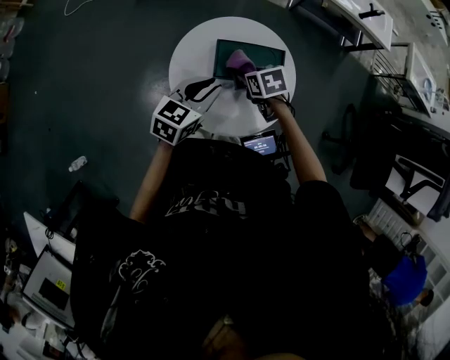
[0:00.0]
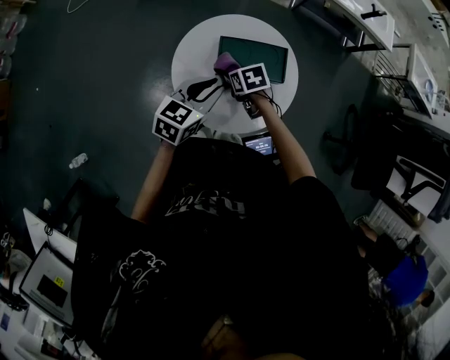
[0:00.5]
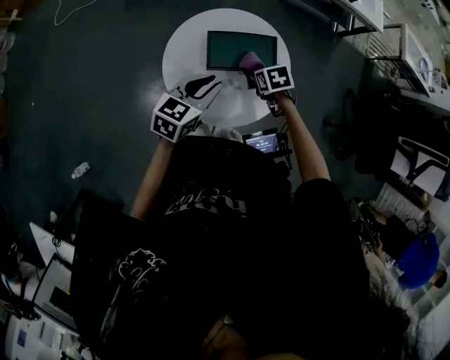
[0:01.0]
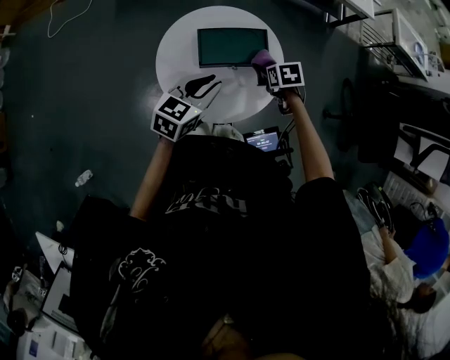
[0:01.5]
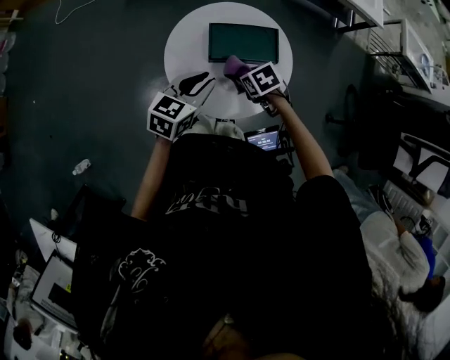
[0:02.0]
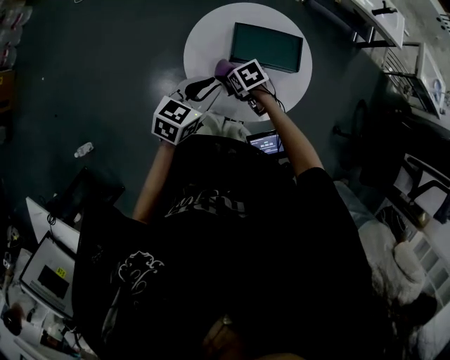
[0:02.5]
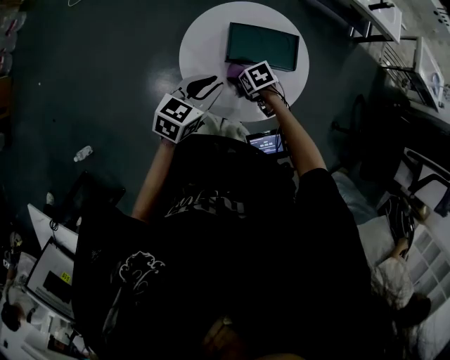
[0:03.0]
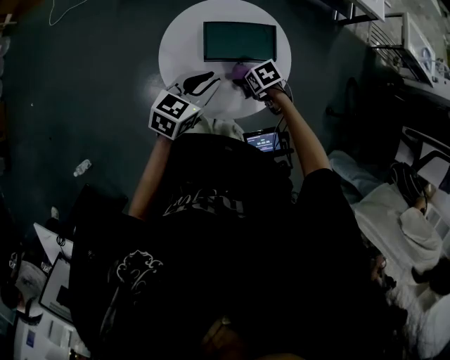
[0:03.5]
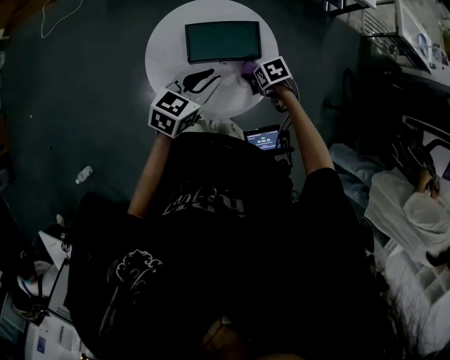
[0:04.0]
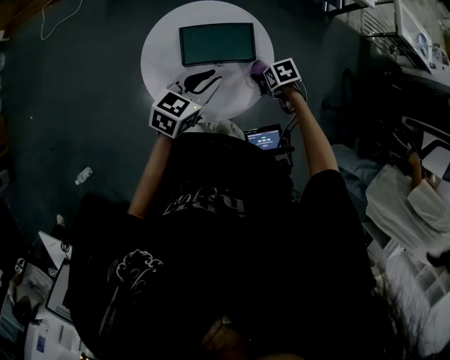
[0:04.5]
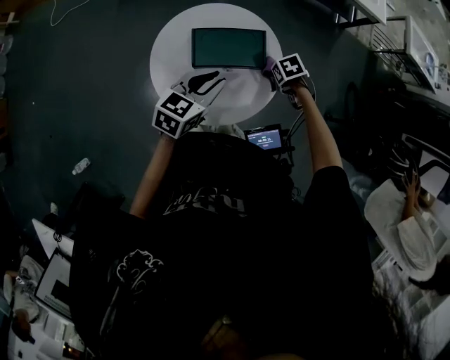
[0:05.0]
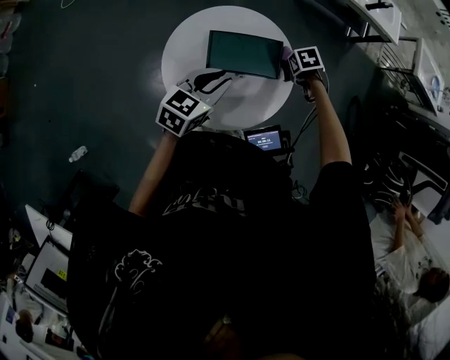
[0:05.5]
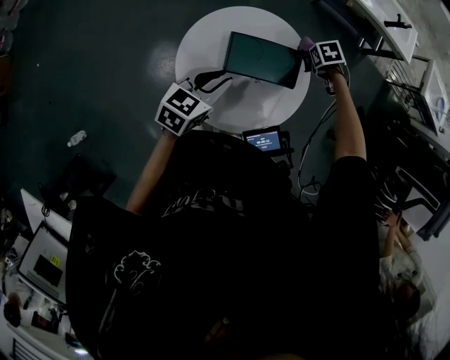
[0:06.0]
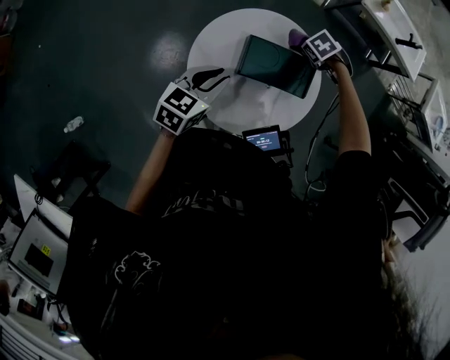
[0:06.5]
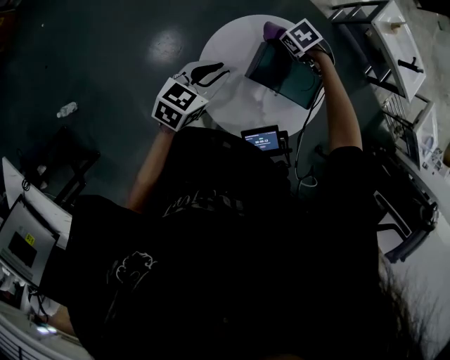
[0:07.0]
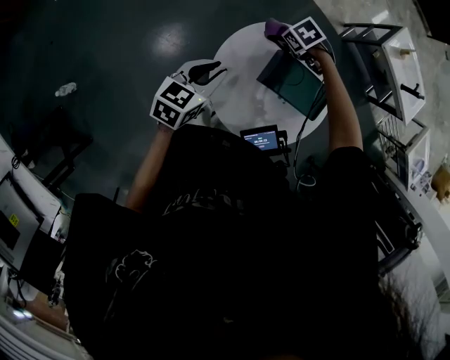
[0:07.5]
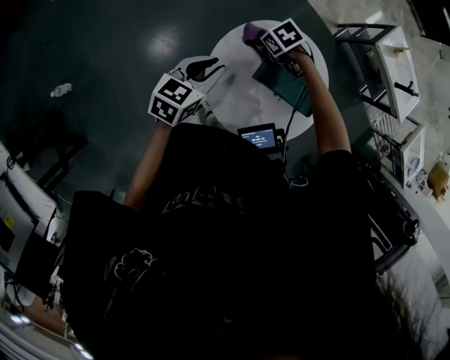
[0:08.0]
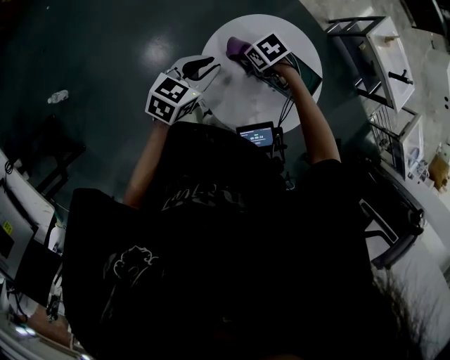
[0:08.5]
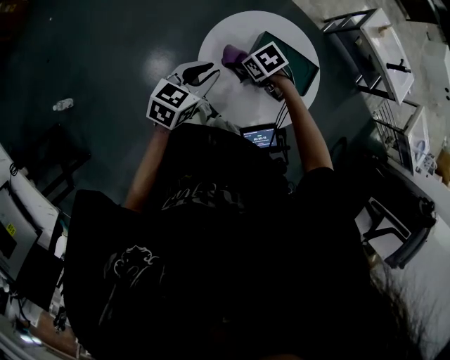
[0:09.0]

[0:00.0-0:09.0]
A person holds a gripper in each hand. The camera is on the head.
0:00.0 to 0:02.0: The right gripper goes left and right, roughly 20 cm each way, reversing 2 times.
0:02.0 to 0:04.5: The left gripper ends up roughly 10 cm from where it was, while the right gripper moves approximately 15 cm, and rotates some 20 degrees.
0:04.5 to 0:07.0: The left gripper ends up about 20 cm from where it was, and swivels about 20 degrees, while the right gripper changes place by roughly 35 cm, and rolls counterclockwise, seen from behind, by about 50 degrees.
0:07.0 to 0:09.0: The right gripper ends up about 20 cm from where it was; the left gripper ends up about 10 cm from where it was.

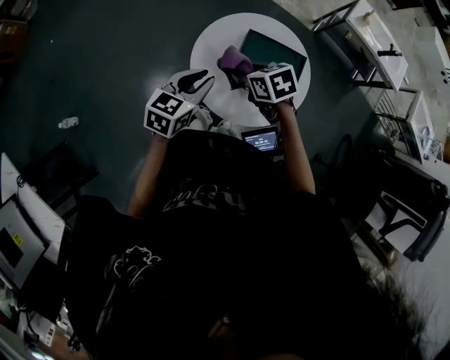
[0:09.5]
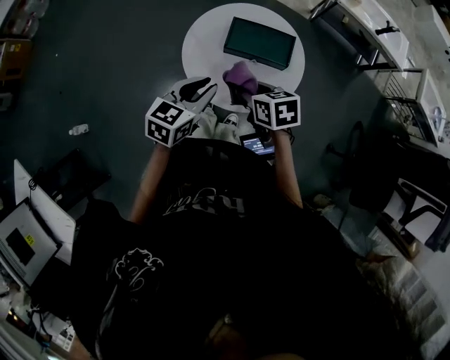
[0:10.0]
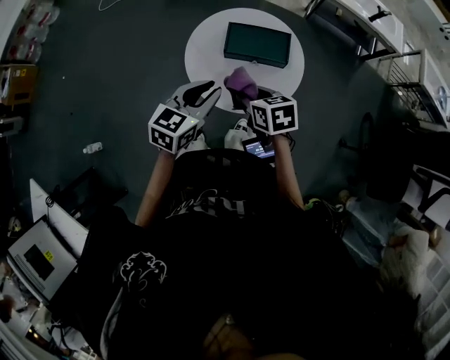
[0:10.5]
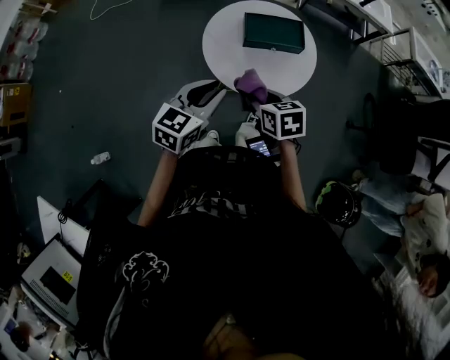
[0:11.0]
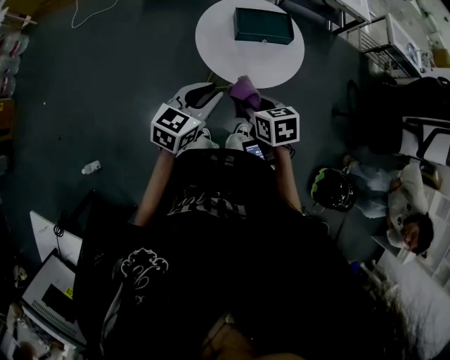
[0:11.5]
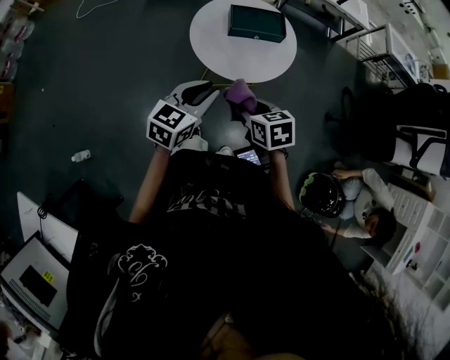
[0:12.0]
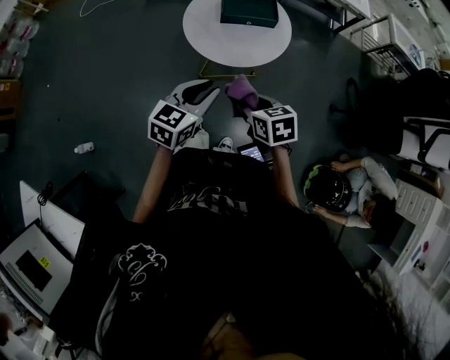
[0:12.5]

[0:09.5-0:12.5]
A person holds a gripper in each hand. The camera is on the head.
0:09.5 to 0:11.0: The left gripper moves some 15 cm. Meanwhile the right gripper changes place by roughly 15 cm, and turns by about 30 degrees.
0:11.0 to 0:12.5: The grippers both shift backward and to the right by approximately 15 cm.

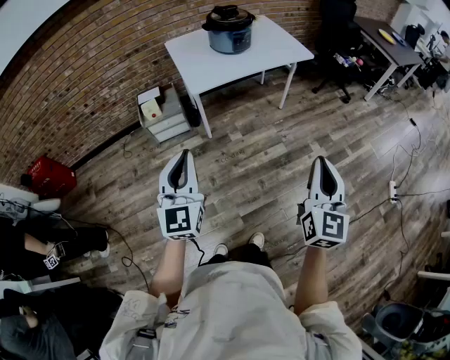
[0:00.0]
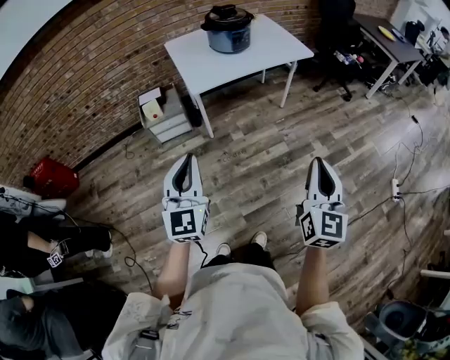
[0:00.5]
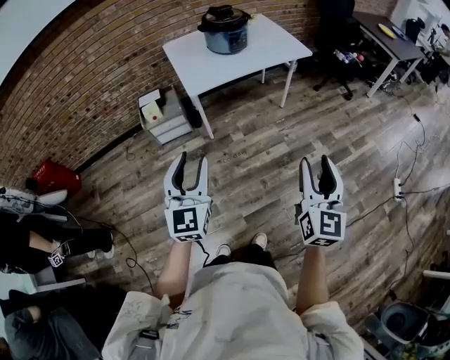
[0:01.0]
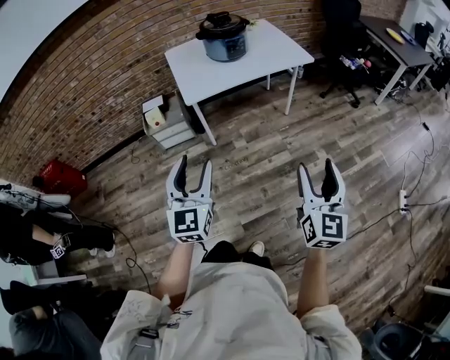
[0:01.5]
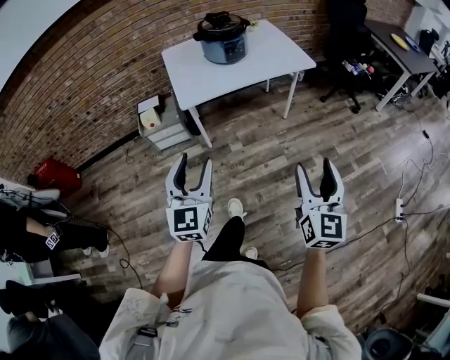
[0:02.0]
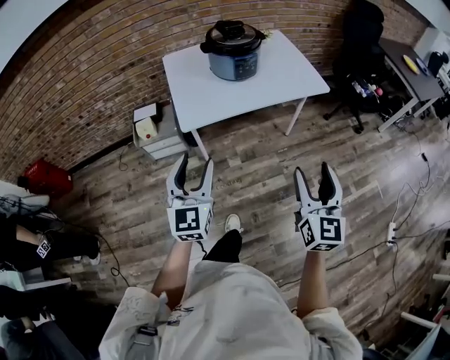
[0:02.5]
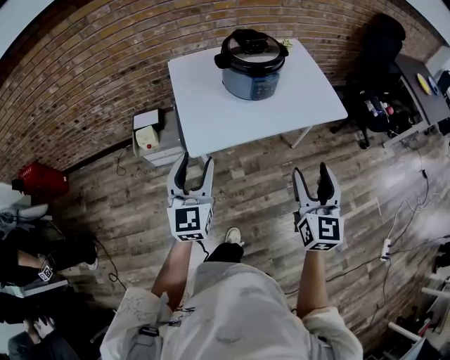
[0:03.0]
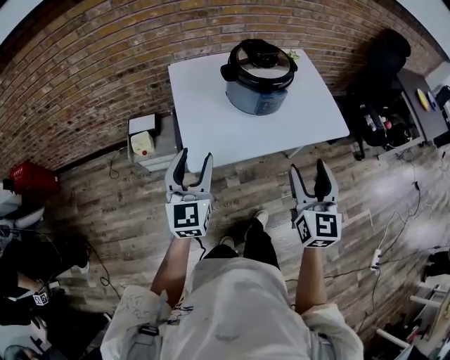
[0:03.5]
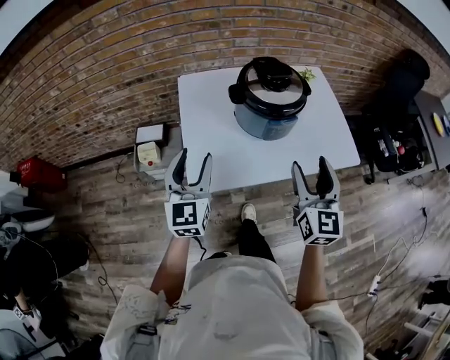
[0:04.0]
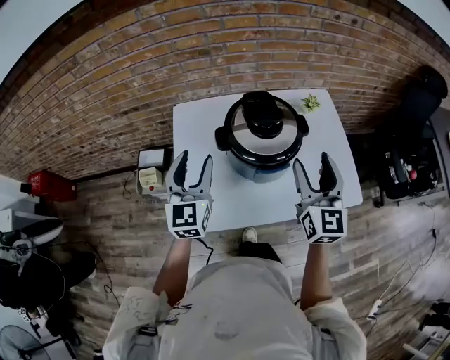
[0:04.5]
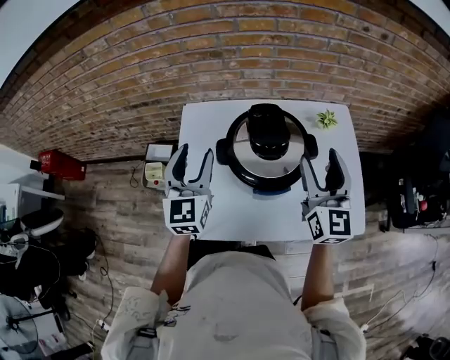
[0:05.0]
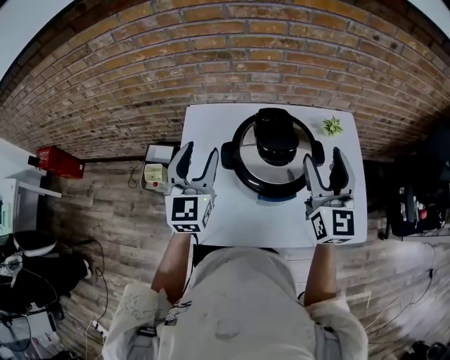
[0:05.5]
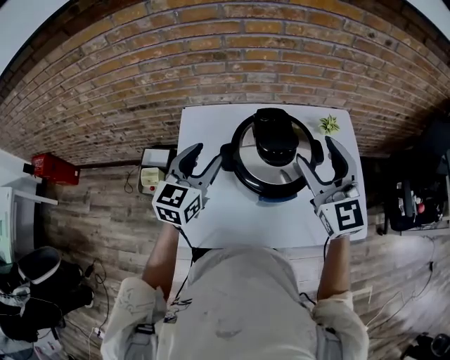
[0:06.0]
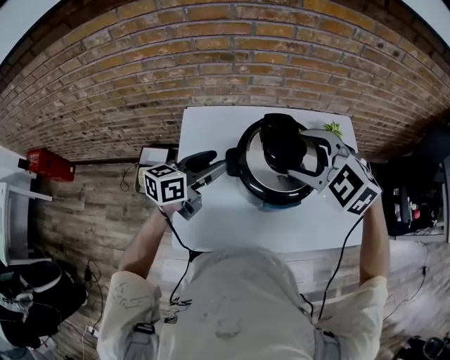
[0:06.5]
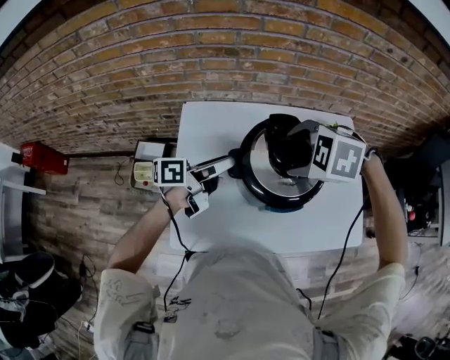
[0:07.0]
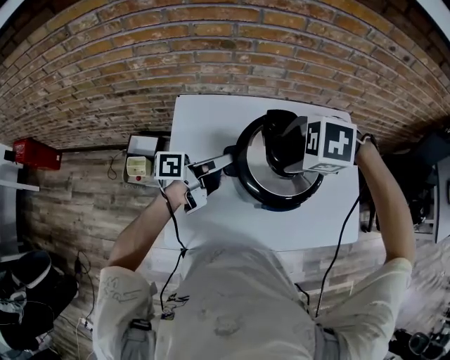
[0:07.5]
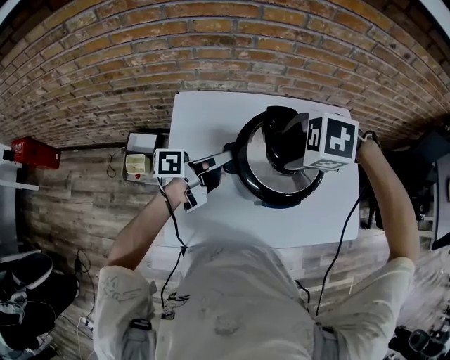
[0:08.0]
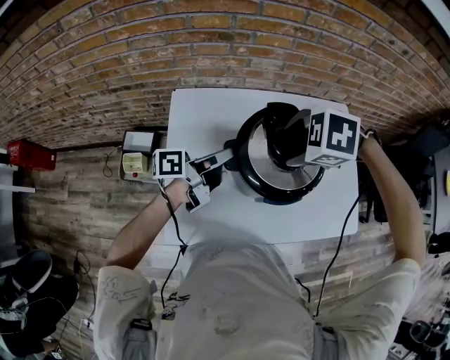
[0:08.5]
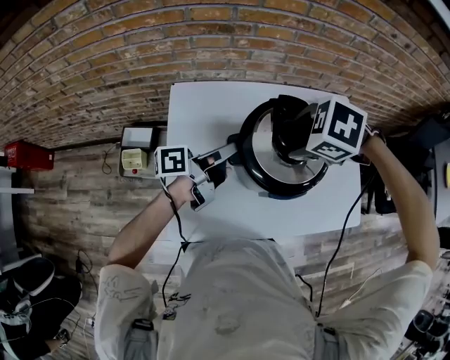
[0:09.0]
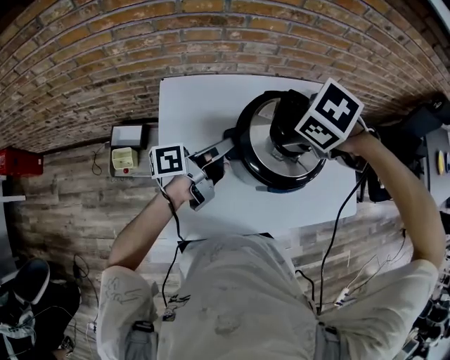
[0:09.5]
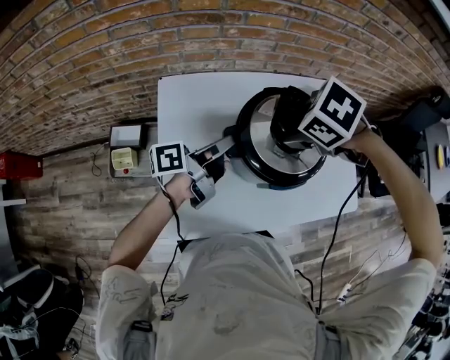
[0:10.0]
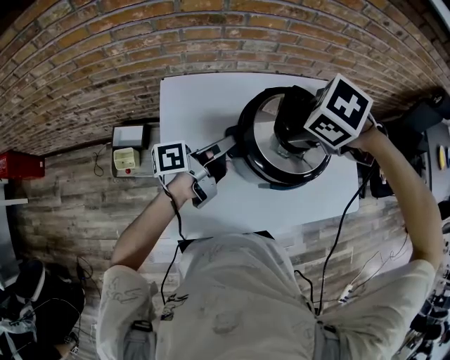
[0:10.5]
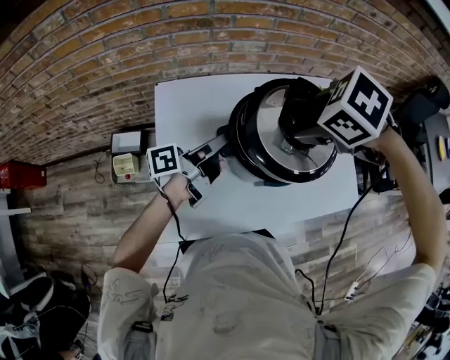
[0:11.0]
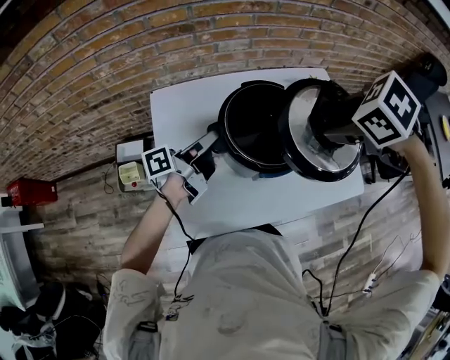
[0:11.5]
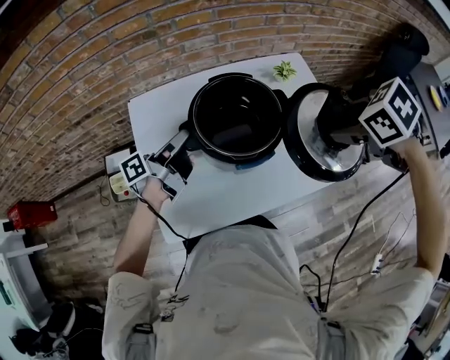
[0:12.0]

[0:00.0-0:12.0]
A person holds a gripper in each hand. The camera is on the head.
0:00.0 to 0:02.0: The left gripper heads to the right and forward, covering roughly 15 cm, and opens up; the right gripper heads forward and to the right, covering about 15 cm, and opens its fingers.
0:02.0 to 0:04.0: The two grippers travel together, forward, approximately 50 cm.
0:04.0 to 0:06.0: The left gripper is displaced forward and to the right by approximately 25 cm; the right gripper is displaced forward by roughly 25 cm, and swivels approximately 30 degrees.
0:06.0 to 0:08.0: Both grippers travel together downward, approximately 10 cm. The left gripper rotates around the line of its fingers by about 70 degrees, counterclockwise from behind, and closes its fingers. The right gripper angles its fingers downward, by some 70 degrees.
0:08.0 to 0:10.0: The right gripper turns by roughly 30 degrees.
0:10.0 to 0:12.0: The right gripper changes place by roughly 25 cm, and changes its angle by roughly 30 degrees.

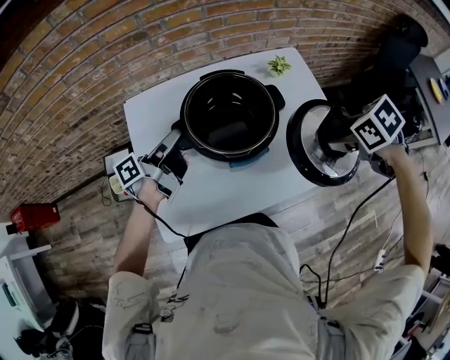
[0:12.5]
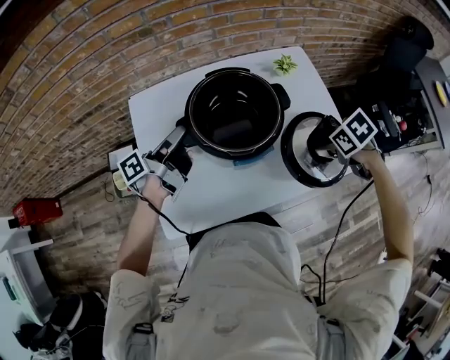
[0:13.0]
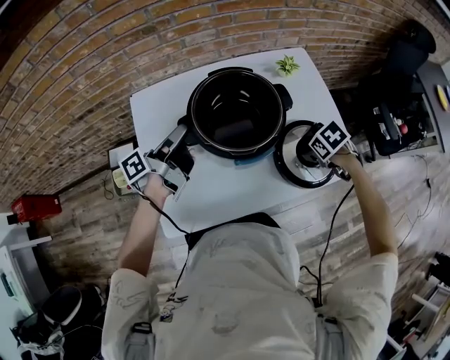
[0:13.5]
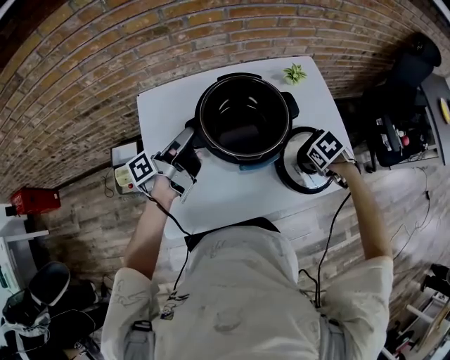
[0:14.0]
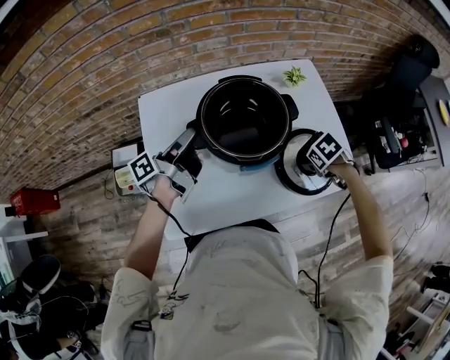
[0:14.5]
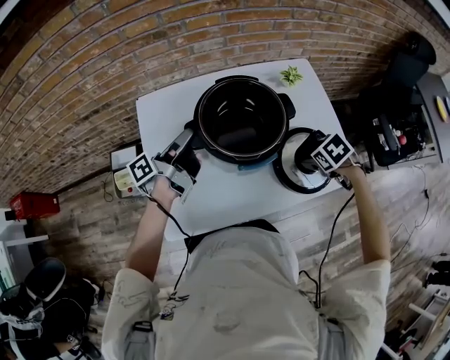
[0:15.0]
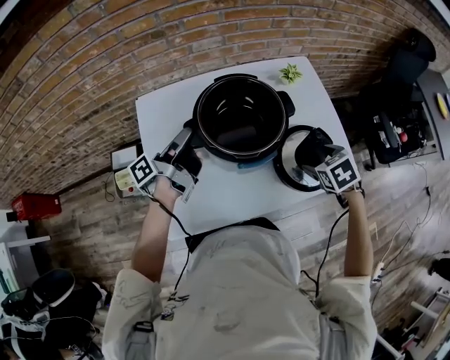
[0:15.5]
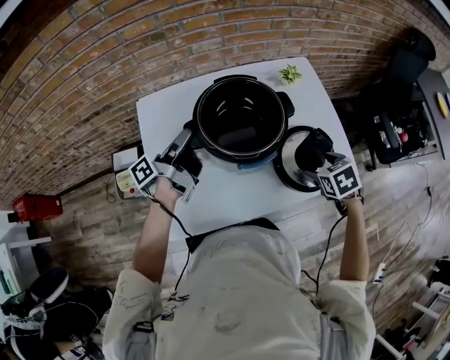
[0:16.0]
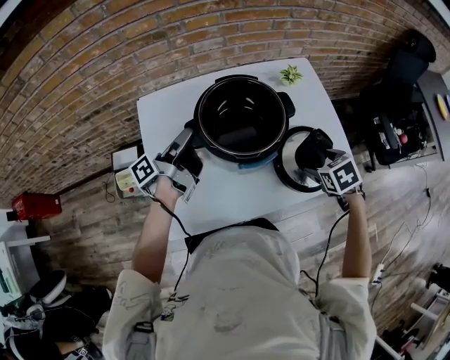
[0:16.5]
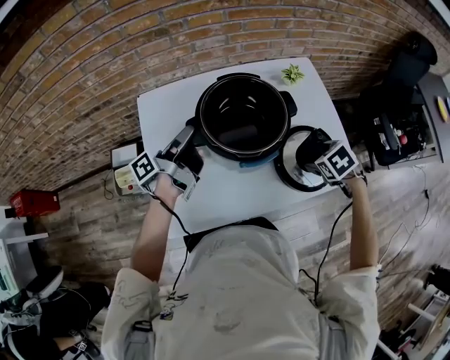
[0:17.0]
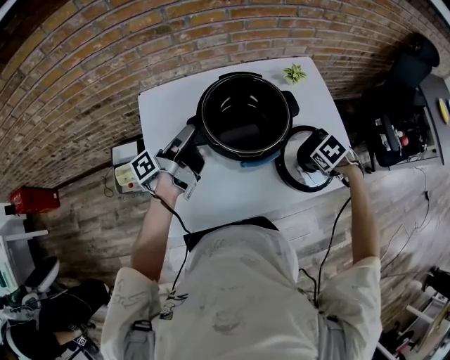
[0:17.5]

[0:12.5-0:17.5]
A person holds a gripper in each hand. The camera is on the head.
0:12.5 to 0:15.0: The right gripper heads downward, covering some 15 cm.
0:15.0 to 0:17.5: The grippers stay close to where they were, moving slightly.
